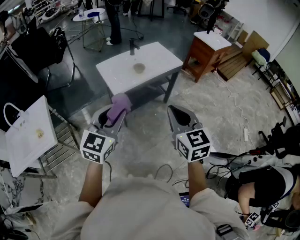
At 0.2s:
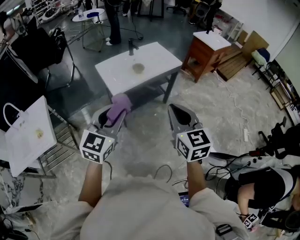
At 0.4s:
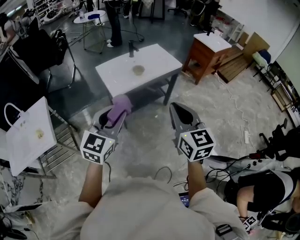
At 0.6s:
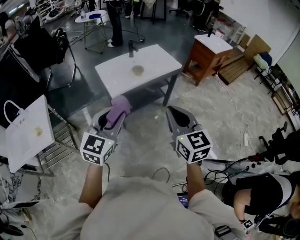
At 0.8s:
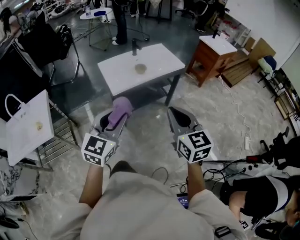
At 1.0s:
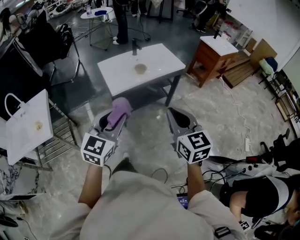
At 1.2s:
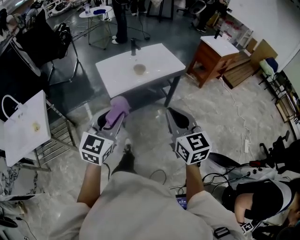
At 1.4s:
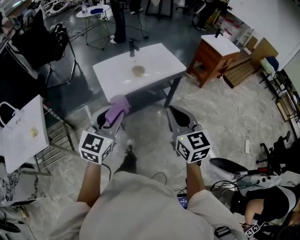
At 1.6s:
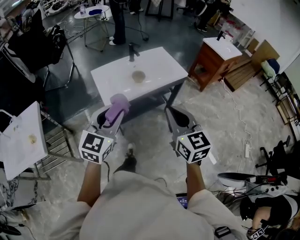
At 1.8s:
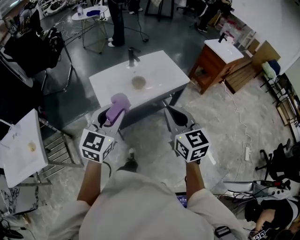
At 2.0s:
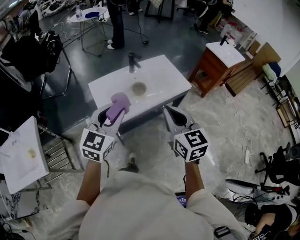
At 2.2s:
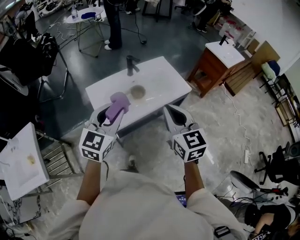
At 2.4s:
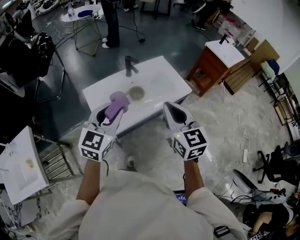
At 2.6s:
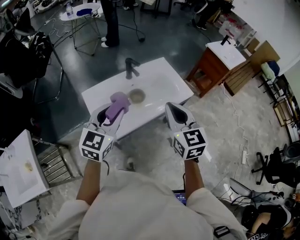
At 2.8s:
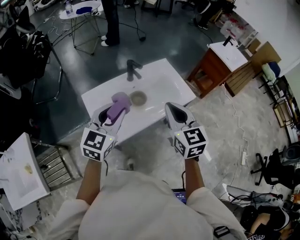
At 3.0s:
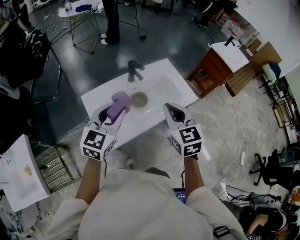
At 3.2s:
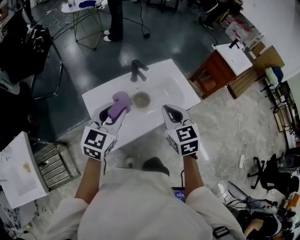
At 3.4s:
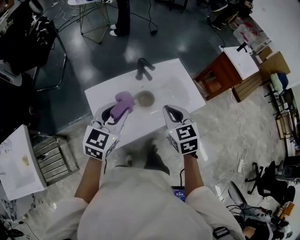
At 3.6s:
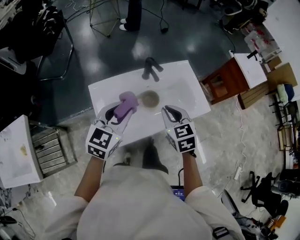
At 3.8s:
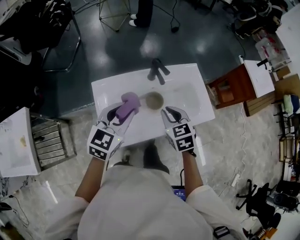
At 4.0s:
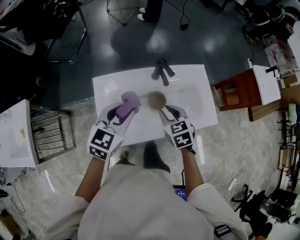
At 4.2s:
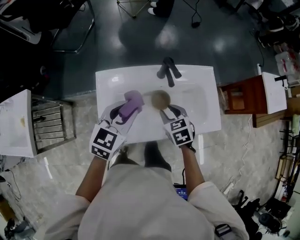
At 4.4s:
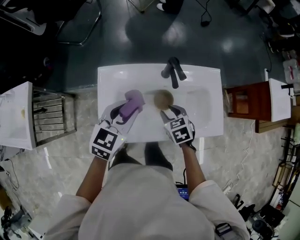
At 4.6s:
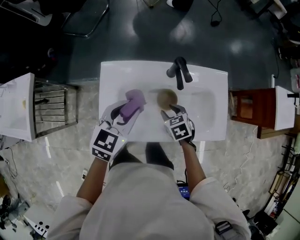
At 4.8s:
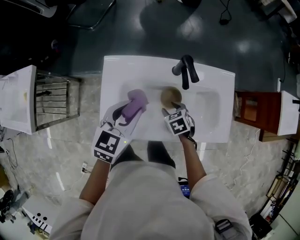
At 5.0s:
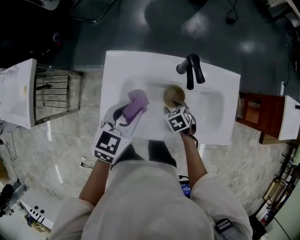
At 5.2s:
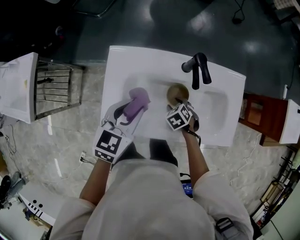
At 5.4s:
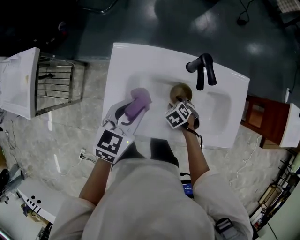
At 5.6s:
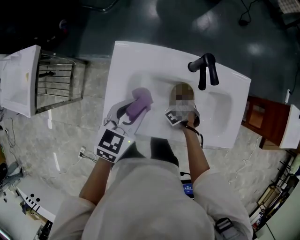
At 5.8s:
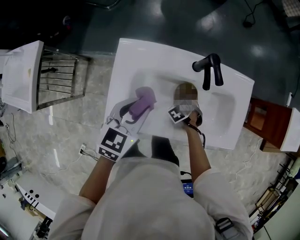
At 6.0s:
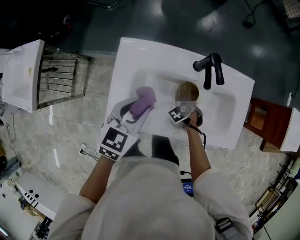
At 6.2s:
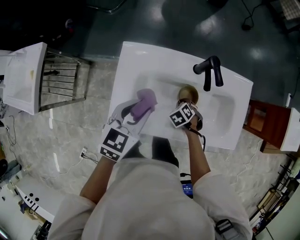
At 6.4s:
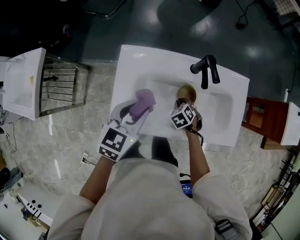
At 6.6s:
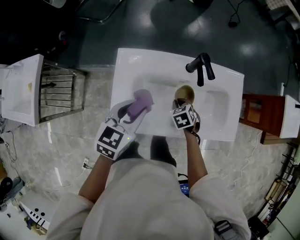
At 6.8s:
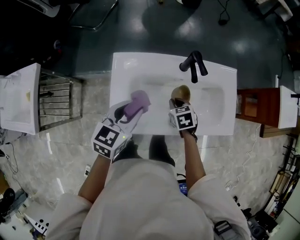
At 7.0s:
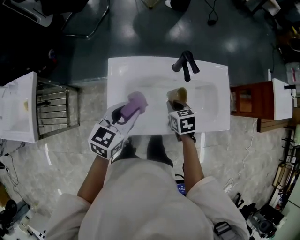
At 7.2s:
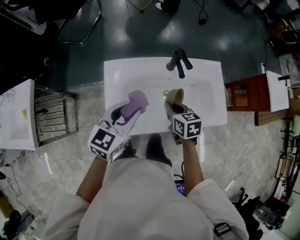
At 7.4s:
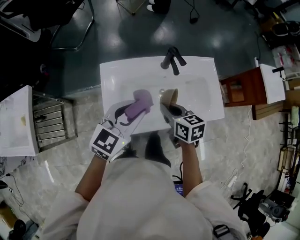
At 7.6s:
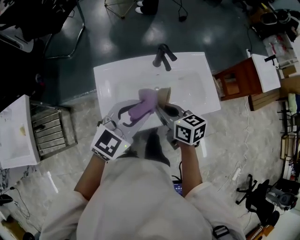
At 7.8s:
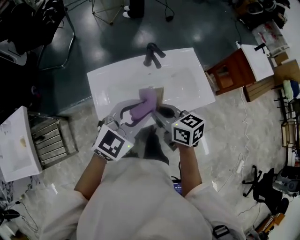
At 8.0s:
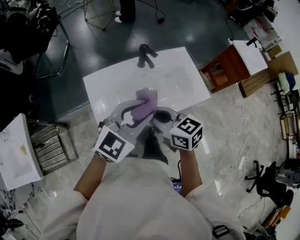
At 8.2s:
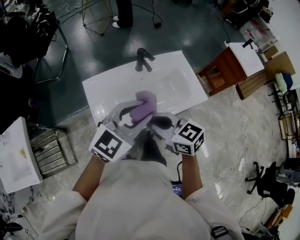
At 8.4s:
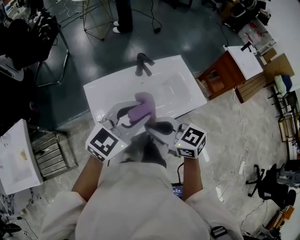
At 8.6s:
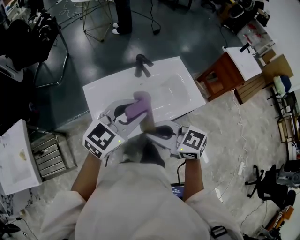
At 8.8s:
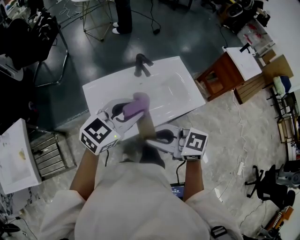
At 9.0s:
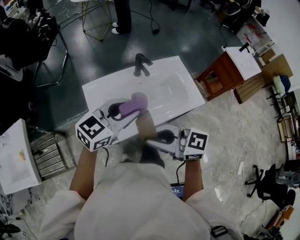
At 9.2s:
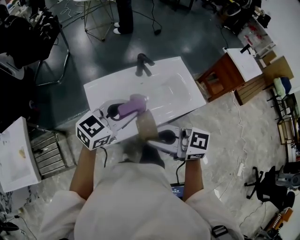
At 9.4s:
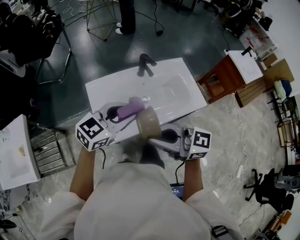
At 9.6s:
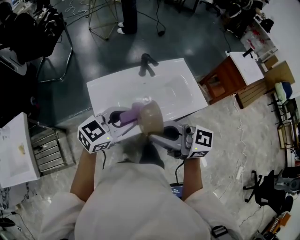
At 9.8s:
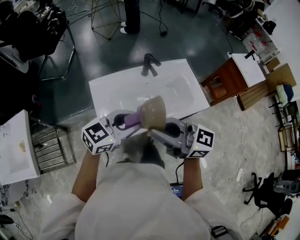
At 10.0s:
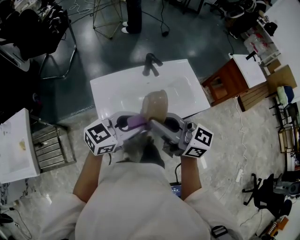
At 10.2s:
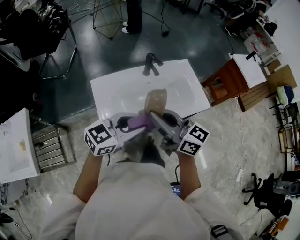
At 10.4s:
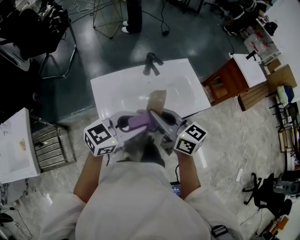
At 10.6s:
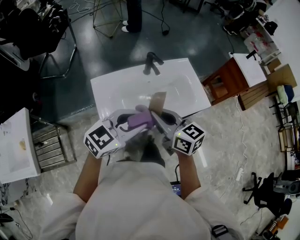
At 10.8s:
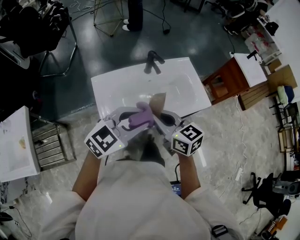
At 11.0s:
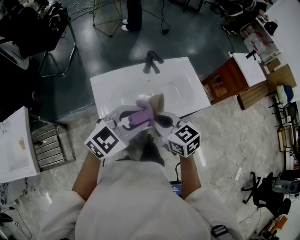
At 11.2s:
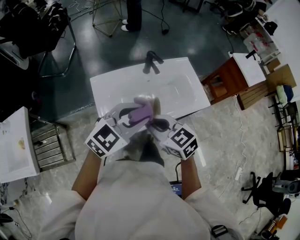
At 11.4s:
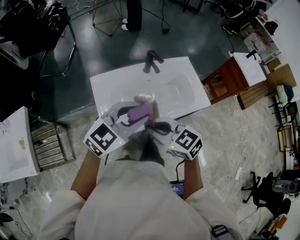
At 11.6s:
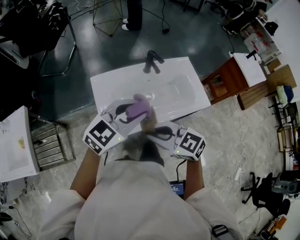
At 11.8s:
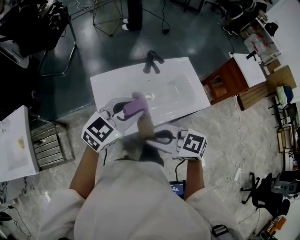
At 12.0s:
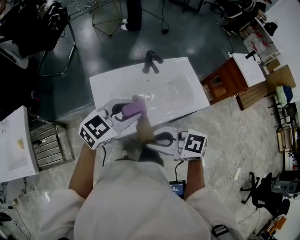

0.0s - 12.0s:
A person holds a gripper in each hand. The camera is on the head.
0.0s - 1.6s: Both grippers travel together forward, some 20 cm.
1.6s - 3.0s: The two grippers go about 35 cm forward.
3.0s - 4.4s: The left gripper shifts by roughly 20 cm, and changes its angle by about 30 degrees. The right gripper moves downward, approximately 25 cm, tips its fingers downward by about 30 degrees, and opens up.
4.4s - 6.0s: The left gripper travels downward by approximately 10 cm. Meanwhile the right gripper heads downward, covering some 20 cm, rotates roughly 40 degrees, and closes.
6.0s - 7.6s: The left gripper is displaced upward by roughly 15 cm, and turns by some 40 degrees. Meanwhile the right gripper shifts roughly 35 cm upward, and angles its fingers upward, by approximately 50 degrees.
7.6s - 9.0s: The right gripper ends up approximately 20 cm from where it was, and turns by approximately 40 degrees.
9.0s - 10.4s: The right gripper changes place by some 10 cm, and changes its angle by approximately 30 degrees. The left gripper moves approximately 5 cm.
10.4s - 12.0s: The right gripper changes place by roughly 10 cm, and rotates some 40 degrees.

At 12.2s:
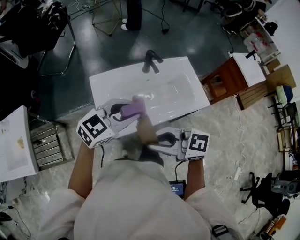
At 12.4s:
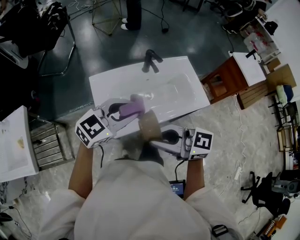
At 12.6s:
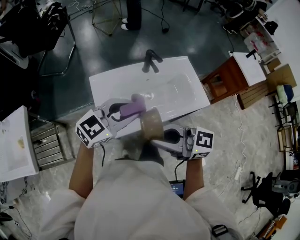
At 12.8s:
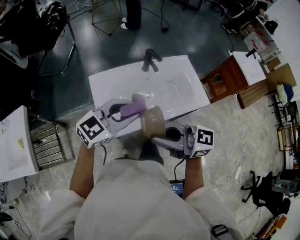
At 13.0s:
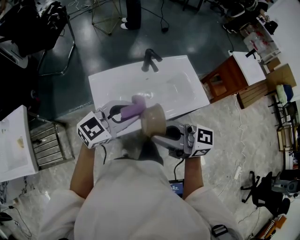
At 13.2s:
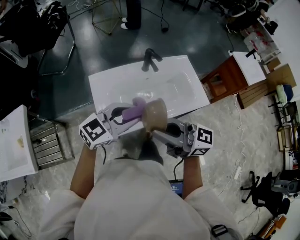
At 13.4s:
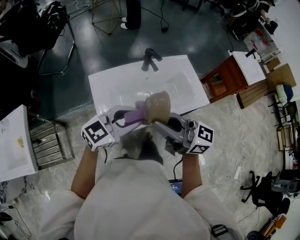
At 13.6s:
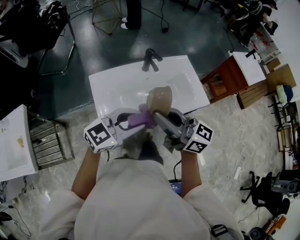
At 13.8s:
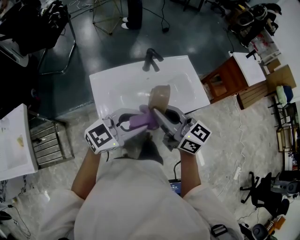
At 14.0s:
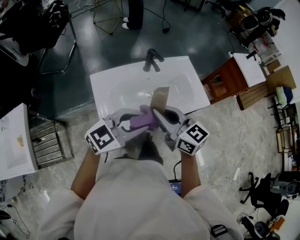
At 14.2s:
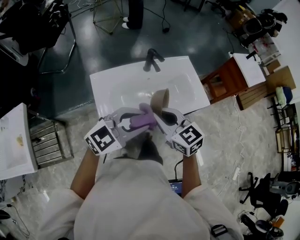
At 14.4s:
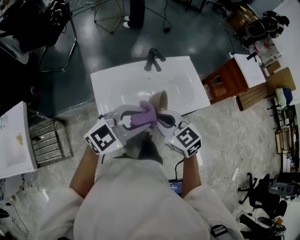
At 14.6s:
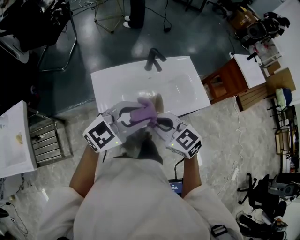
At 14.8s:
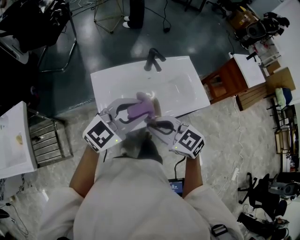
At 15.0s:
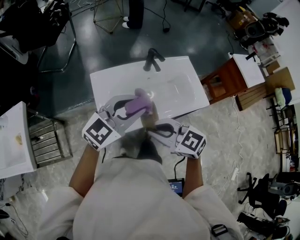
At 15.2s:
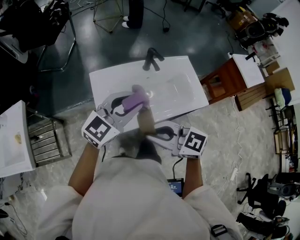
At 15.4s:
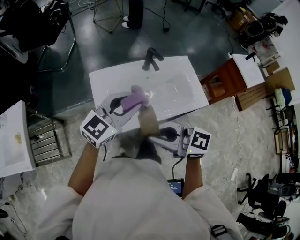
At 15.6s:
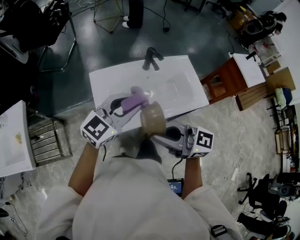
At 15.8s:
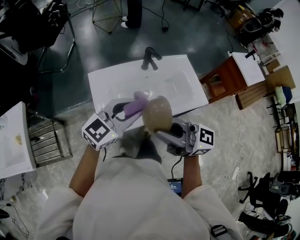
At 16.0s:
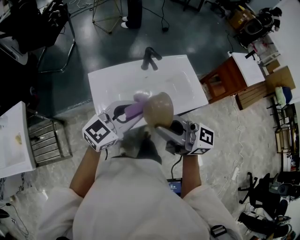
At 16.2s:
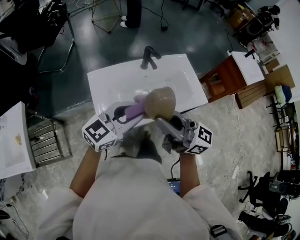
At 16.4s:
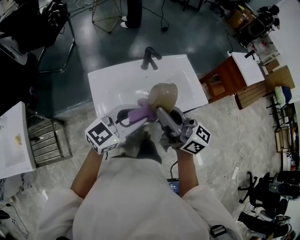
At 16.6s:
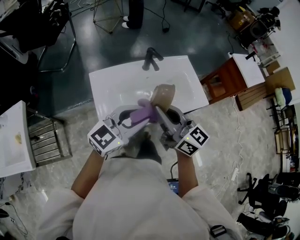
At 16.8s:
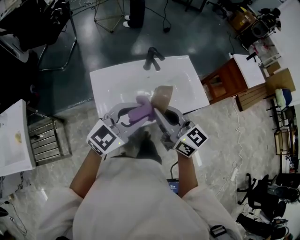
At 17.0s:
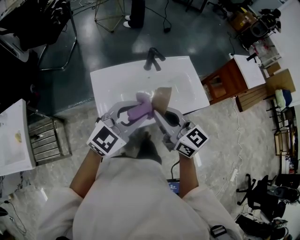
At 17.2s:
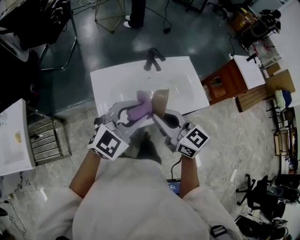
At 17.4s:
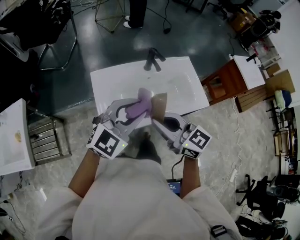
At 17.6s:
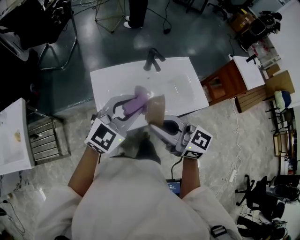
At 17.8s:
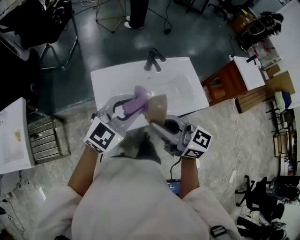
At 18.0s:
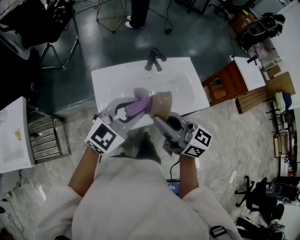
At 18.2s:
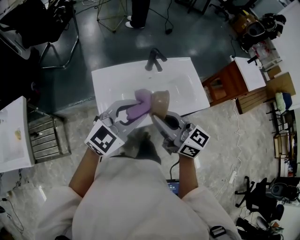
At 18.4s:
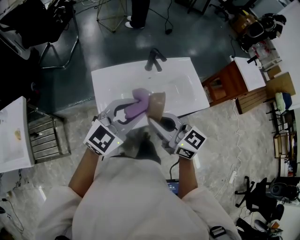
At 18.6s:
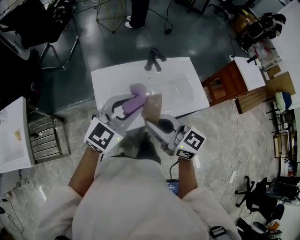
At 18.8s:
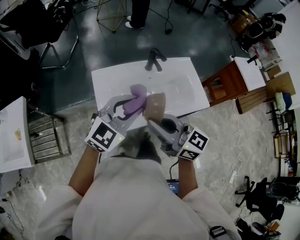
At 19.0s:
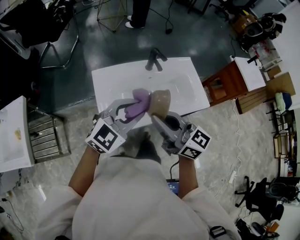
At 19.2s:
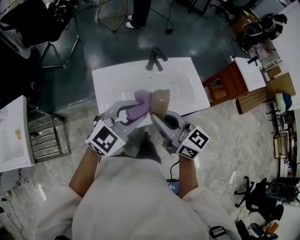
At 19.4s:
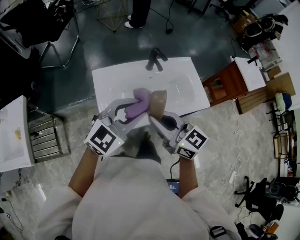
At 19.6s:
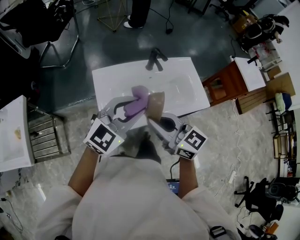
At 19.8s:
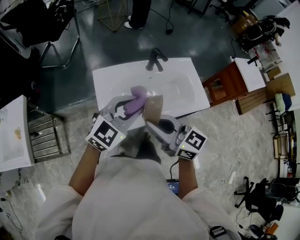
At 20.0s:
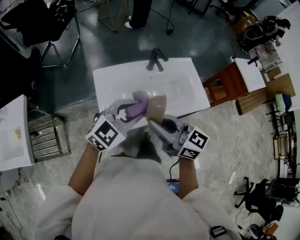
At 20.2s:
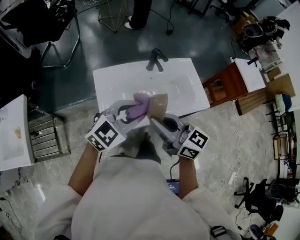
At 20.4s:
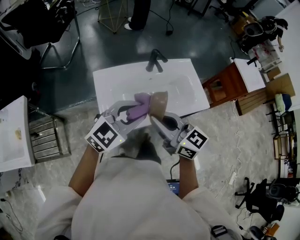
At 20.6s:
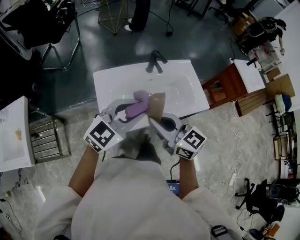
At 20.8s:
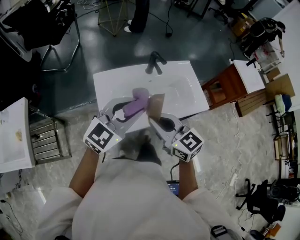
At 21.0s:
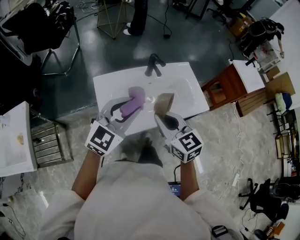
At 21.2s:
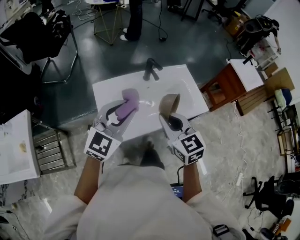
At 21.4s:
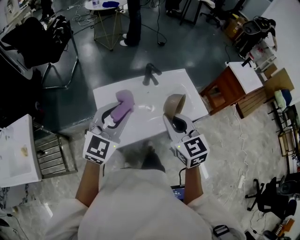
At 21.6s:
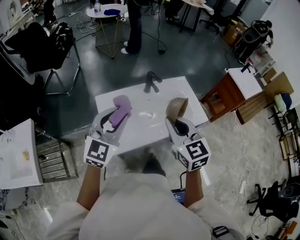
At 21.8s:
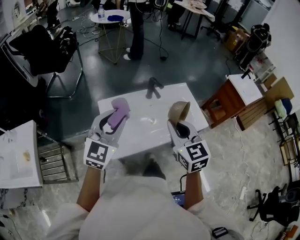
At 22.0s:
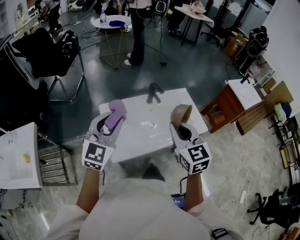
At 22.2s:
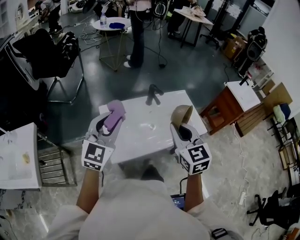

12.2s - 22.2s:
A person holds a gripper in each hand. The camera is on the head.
12.2s - 13.6s: The right gripper changes place by roughly 10 cm, and rotates about 40 degrees.
13.6s - 15.0s: The left gripper ends up roughly 5 cm from where it was; the right gripper goes approximately 10 cm downward, and tilts its fingers approximately 40 degrees downward.
15.0s - 16.4s: The right gripper travels upward by roughly 10 cm, and tilts its fingers roughly 40 degrees upward.
16.4s - 18.0s: The left gripper rotates approximately 20 degrees.
18.0s - 19.4s: The grippers stay close to where they were, moving slightly.
19.4s - 20.8s: There are only small adjustments of the grippers.
20.8s - 22.2s: The left gripper is displaced to the left and upward by approximately 10 cm, and swivels about 20 degrees. Meanwhile the right gripper travels upward and to the right by some 10 cm, and rotates about 30 degrees.

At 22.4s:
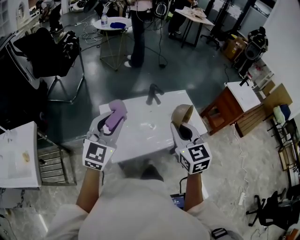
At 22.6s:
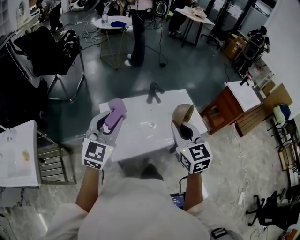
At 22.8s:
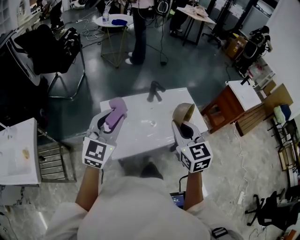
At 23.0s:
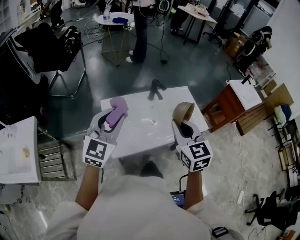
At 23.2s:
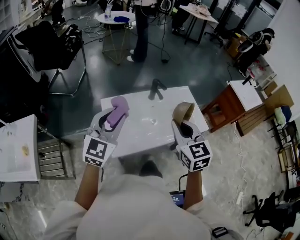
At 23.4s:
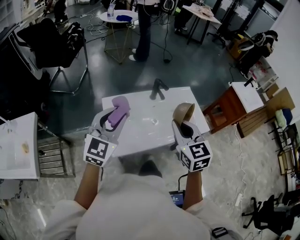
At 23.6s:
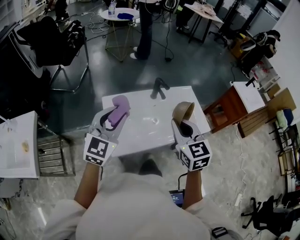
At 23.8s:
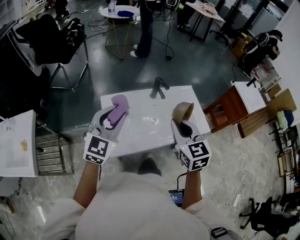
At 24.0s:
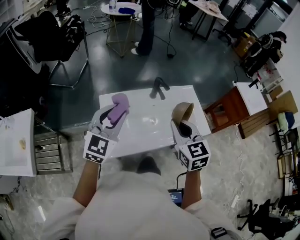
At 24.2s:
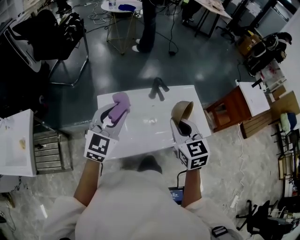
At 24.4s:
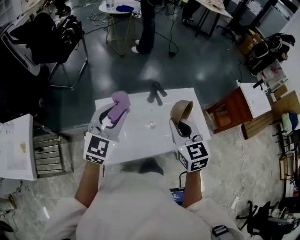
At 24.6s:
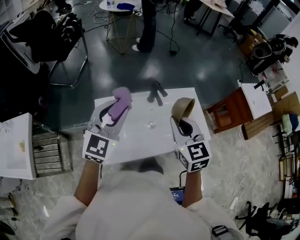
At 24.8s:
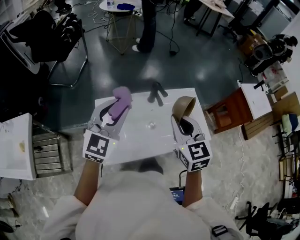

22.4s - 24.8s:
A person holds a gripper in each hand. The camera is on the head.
22.4s - 23.6s: The grippers make only small movements.
23.6s - 24.8s: The right gripper is displaced forward by some 10 cm, while the left gripper travels forward and to the right by approximately 15 cm.
